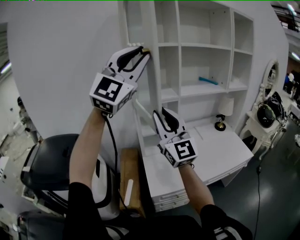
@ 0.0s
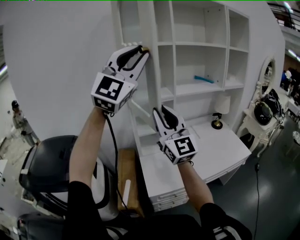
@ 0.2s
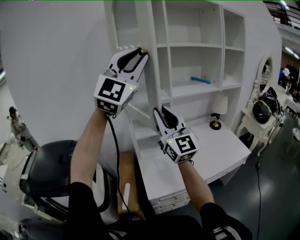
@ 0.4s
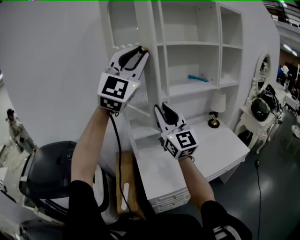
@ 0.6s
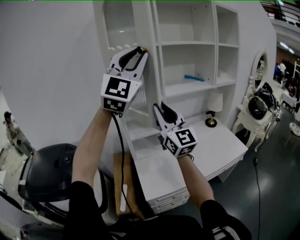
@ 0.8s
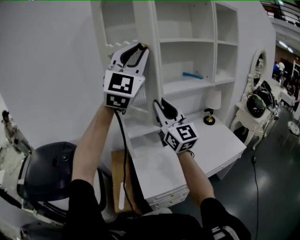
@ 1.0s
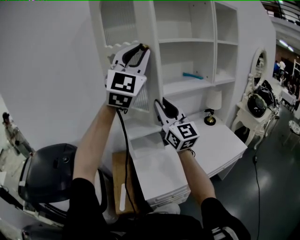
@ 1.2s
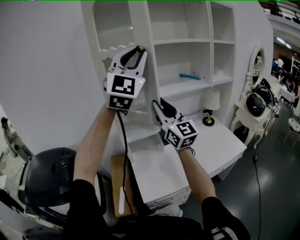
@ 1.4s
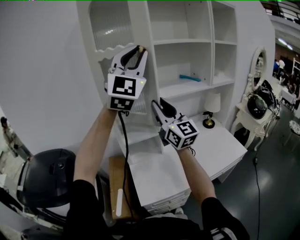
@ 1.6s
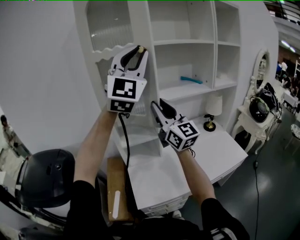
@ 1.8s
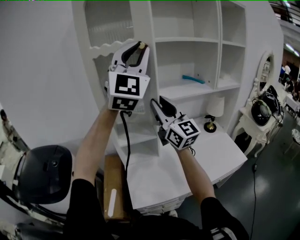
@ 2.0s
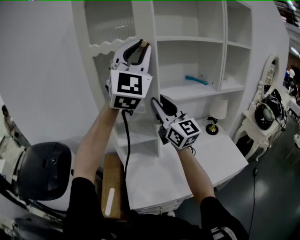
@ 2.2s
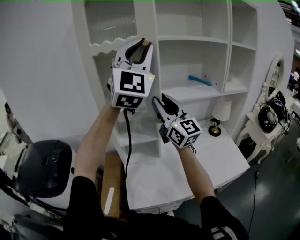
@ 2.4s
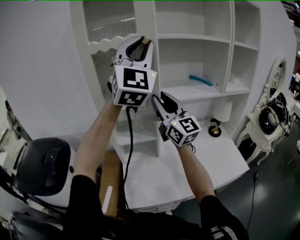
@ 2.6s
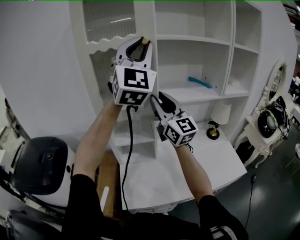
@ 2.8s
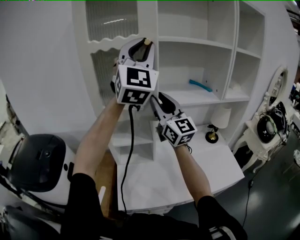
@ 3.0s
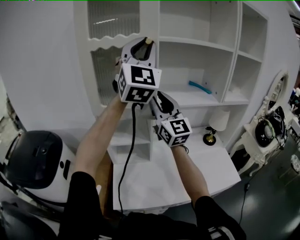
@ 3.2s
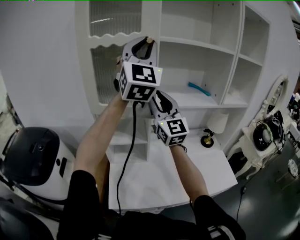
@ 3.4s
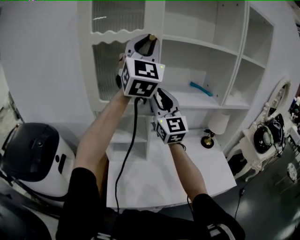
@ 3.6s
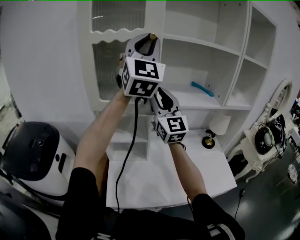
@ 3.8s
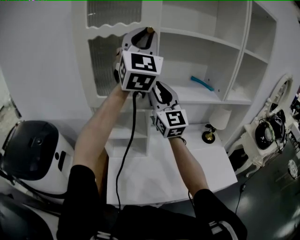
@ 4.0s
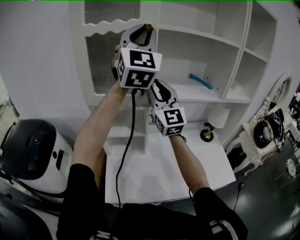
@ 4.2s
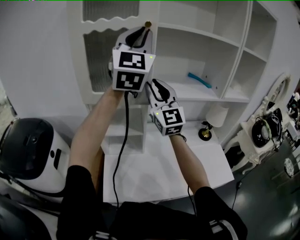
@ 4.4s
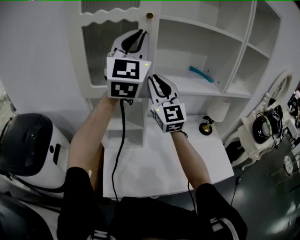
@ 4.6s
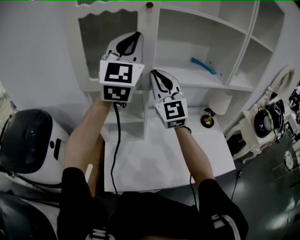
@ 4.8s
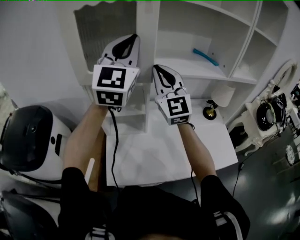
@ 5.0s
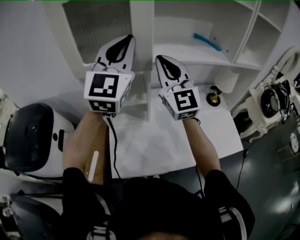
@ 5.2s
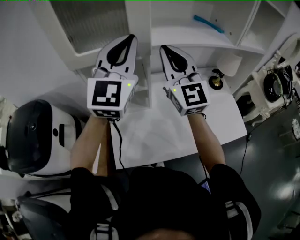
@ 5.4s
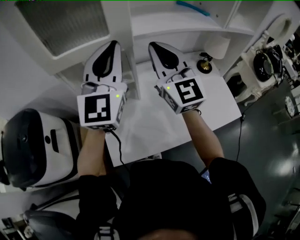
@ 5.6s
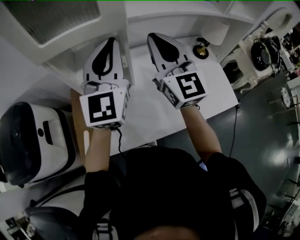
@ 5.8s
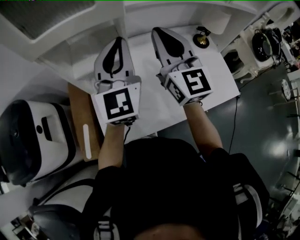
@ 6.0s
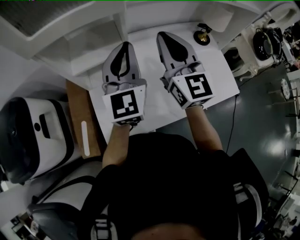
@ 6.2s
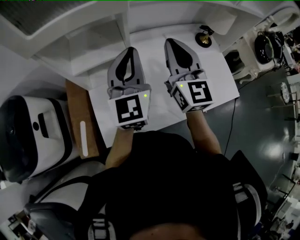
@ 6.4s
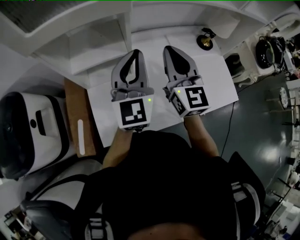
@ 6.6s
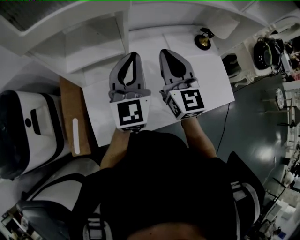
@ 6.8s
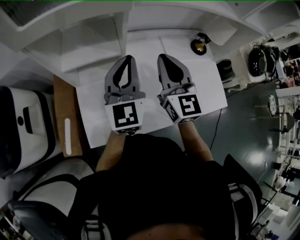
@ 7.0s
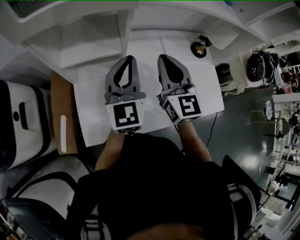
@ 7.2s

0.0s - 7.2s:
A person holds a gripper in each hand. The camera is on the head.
0.0s - 1.4s: The left gripper heads to the right and forward, covering approximately 15 cm, while the right gripper travels forward and to the right by roughly 15 cm.
1.4s - 2.8s: Both grippers move forward and to the right, roughly 15 cm.
2.8s - 4.4s: The grippers both shift forward by approximately 5 cm.
4.4s - 5.8s: The left gripper is displaced downward by roughly 25 cm, and rotates approximately 20 degrees. Meanwhile the right gripper goes roughly 10 cm downward and to the right, and closes its fingers.
5.8s - 7.2s: The grippers both shift downward by about 15 cm.

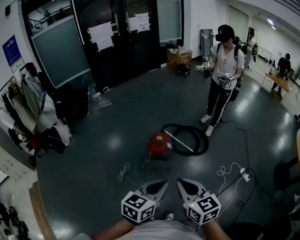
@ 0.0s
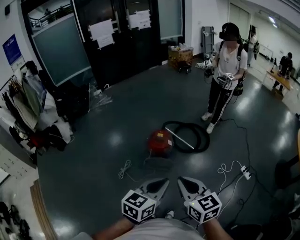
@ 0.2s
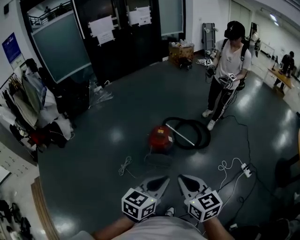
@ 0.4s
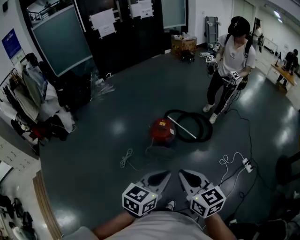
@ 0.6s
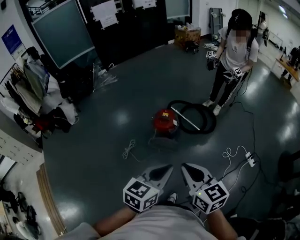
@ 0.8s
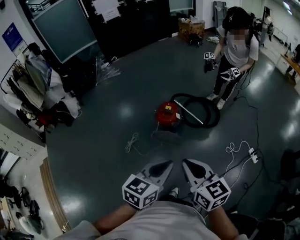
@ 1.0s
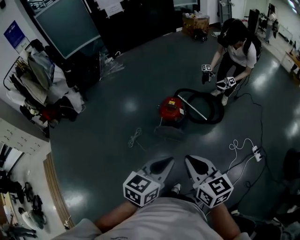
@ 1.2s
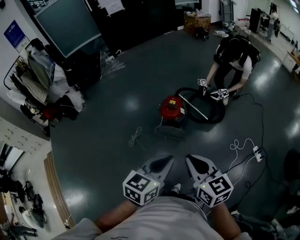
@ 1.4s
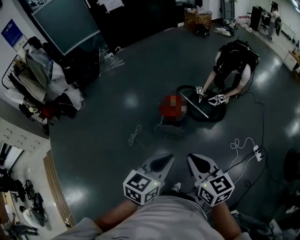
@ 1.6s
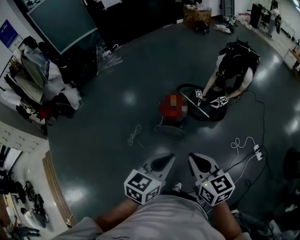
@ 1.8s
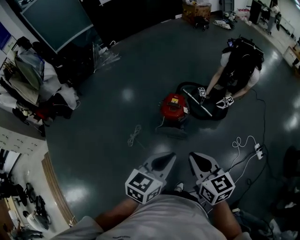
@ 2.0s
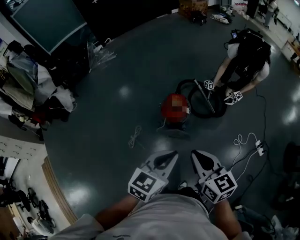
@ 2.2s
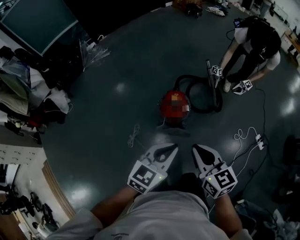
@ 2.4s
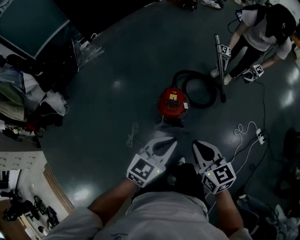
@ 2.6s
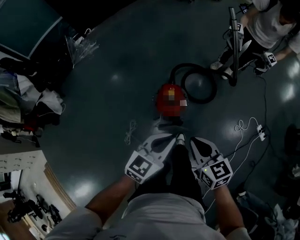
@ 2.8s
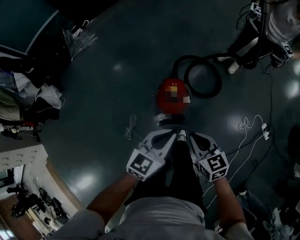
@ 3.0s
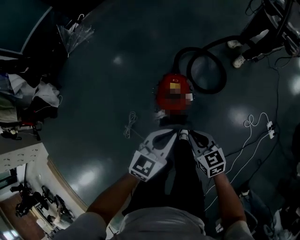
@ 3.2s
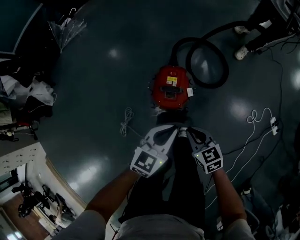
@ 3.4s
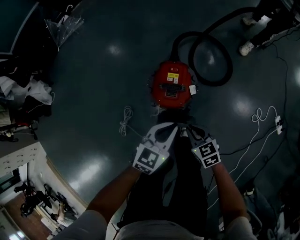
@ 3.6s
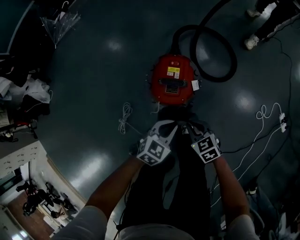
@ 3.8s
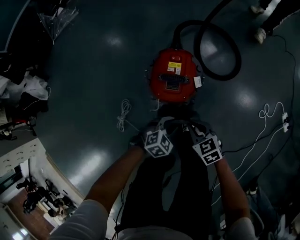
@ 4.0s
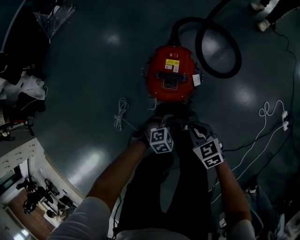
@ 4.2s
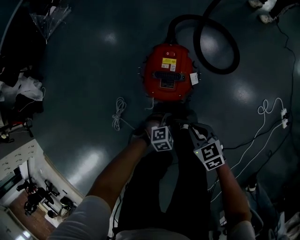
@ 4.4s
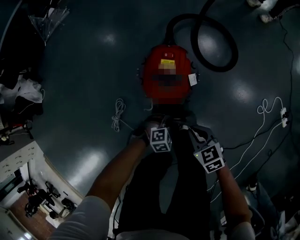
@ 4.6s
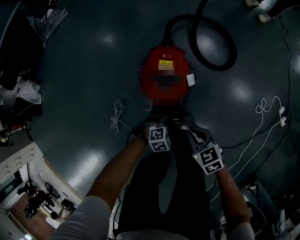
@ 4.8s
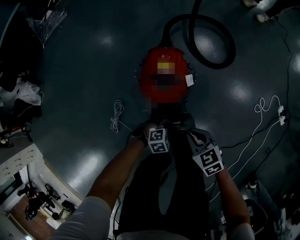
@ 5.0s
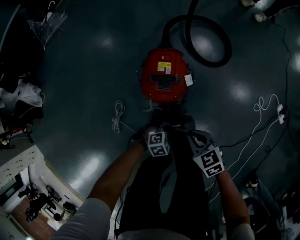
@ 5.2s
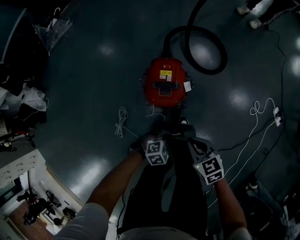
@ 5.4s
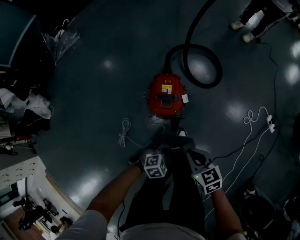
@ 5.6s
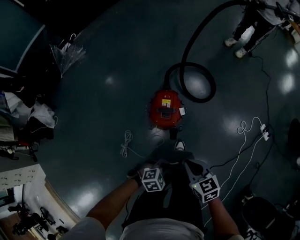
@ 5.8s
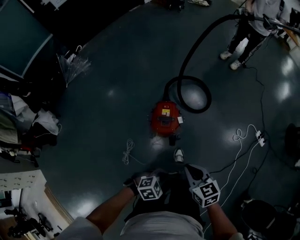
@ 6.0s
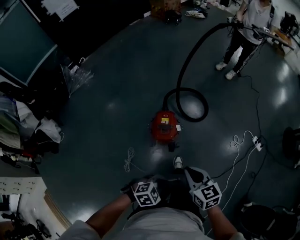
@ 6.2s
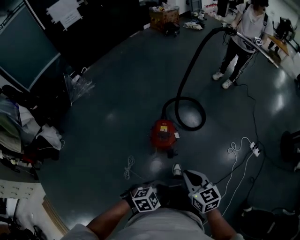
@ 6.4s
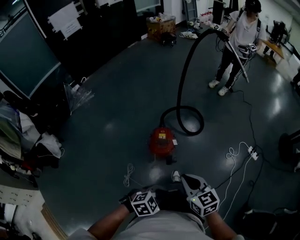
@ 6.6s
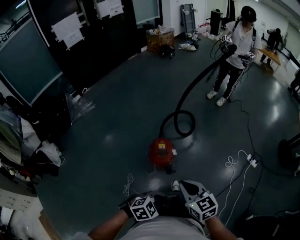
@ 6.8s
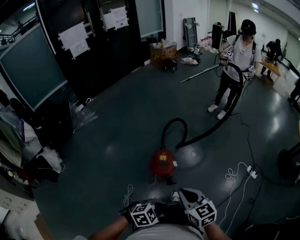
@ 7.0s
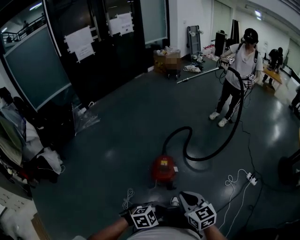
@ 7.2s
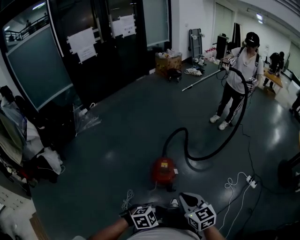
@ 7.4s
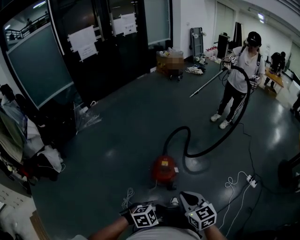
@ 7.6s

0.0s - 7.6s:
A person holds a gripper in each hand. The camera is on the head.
0.0s - 1.6s: The right gripper moves about 5 cm.
1.6s - 3.0s: The two grippers go some 40 cm forward and downward.
3.0s - 4.6s: The left gripper is displaced downward by roughly 50 cm, and tilts its fingers some 50 degrees downward. The right gripper travels downward by about 35 cm.
4.6s - 6.0s: Both grippers travel together upward, approximately 40 cm. The right gripper swivels roughly 20 degrees.
6.0s - 7.6s: The two grippers go approximately 20 cm upward.

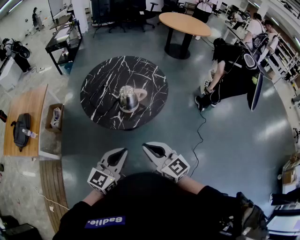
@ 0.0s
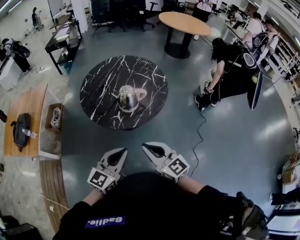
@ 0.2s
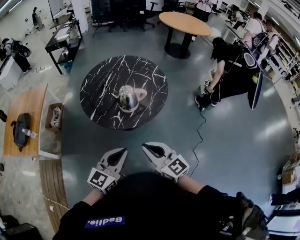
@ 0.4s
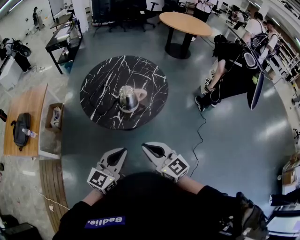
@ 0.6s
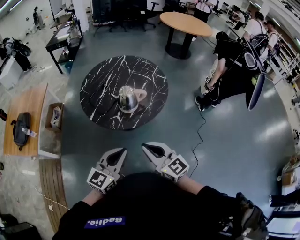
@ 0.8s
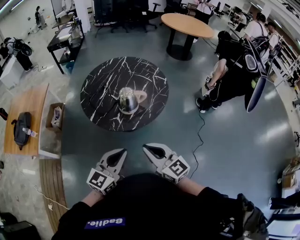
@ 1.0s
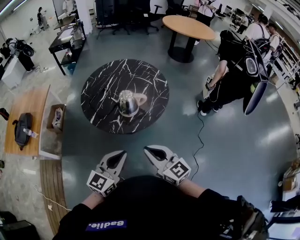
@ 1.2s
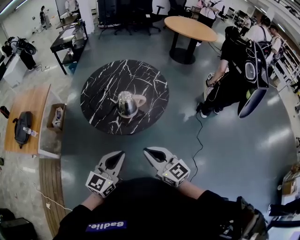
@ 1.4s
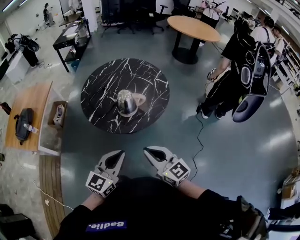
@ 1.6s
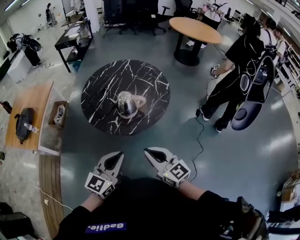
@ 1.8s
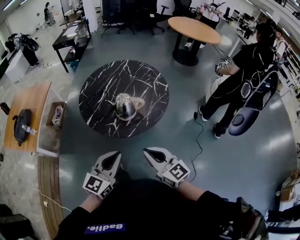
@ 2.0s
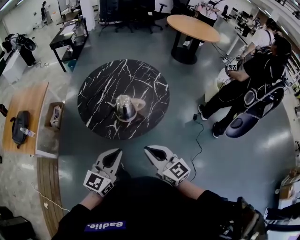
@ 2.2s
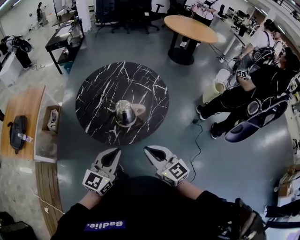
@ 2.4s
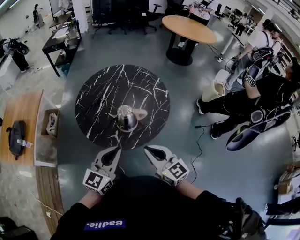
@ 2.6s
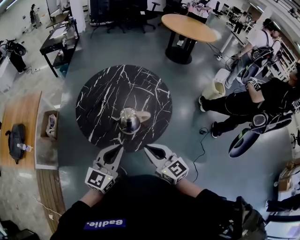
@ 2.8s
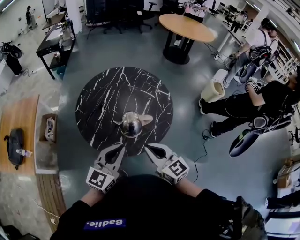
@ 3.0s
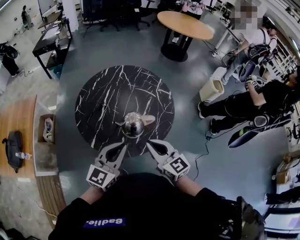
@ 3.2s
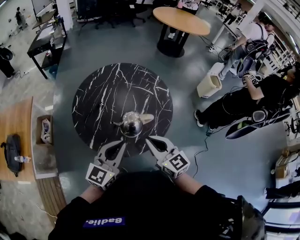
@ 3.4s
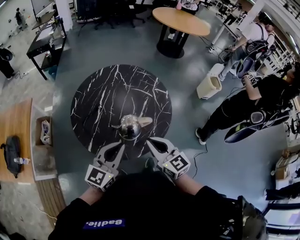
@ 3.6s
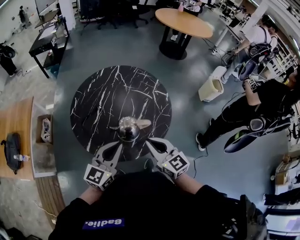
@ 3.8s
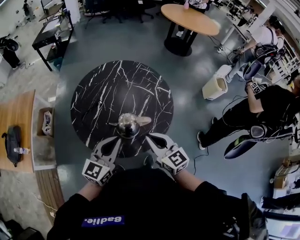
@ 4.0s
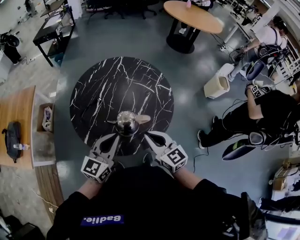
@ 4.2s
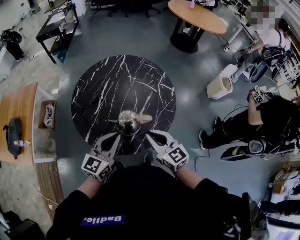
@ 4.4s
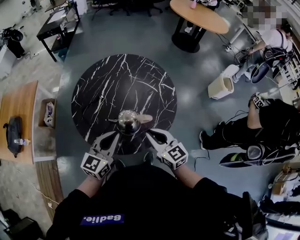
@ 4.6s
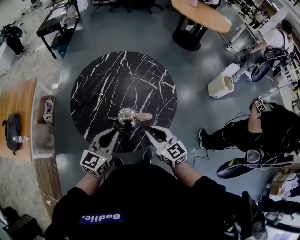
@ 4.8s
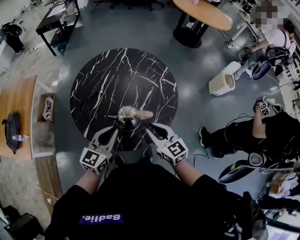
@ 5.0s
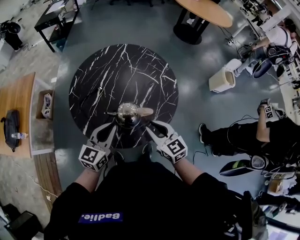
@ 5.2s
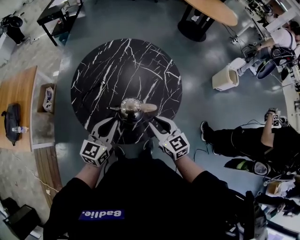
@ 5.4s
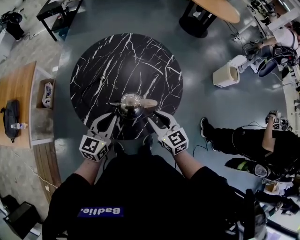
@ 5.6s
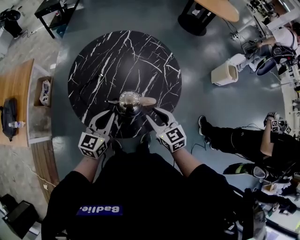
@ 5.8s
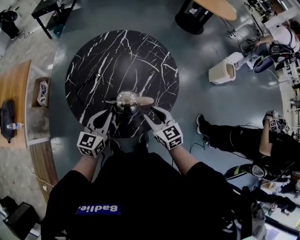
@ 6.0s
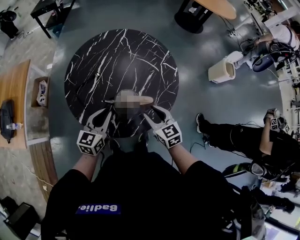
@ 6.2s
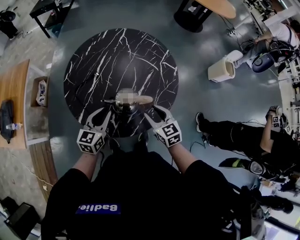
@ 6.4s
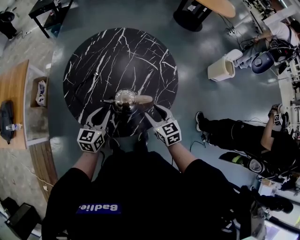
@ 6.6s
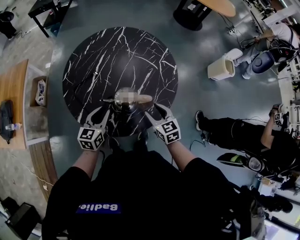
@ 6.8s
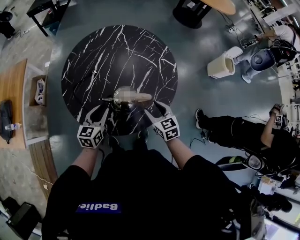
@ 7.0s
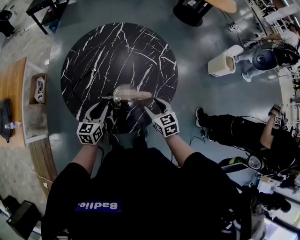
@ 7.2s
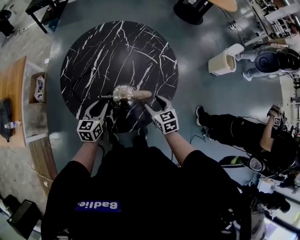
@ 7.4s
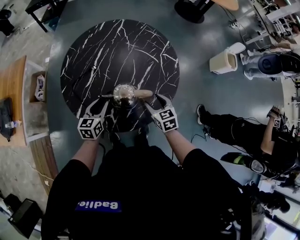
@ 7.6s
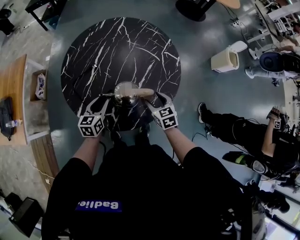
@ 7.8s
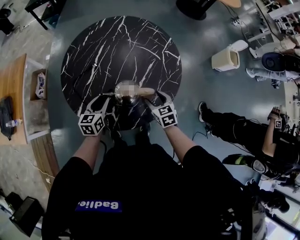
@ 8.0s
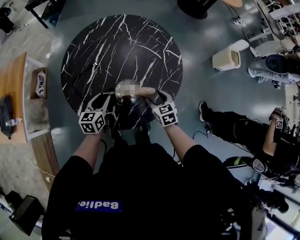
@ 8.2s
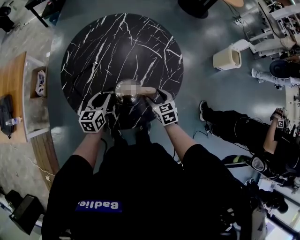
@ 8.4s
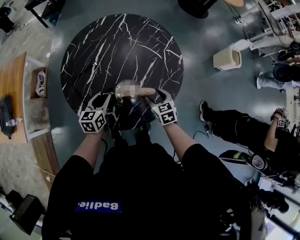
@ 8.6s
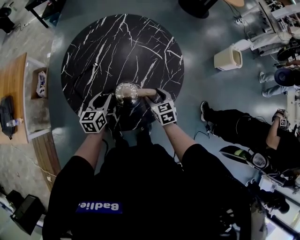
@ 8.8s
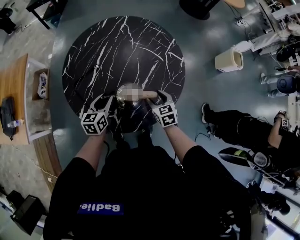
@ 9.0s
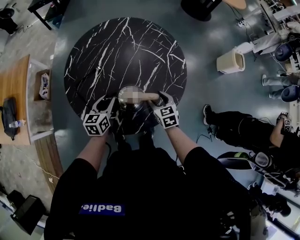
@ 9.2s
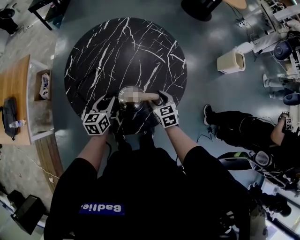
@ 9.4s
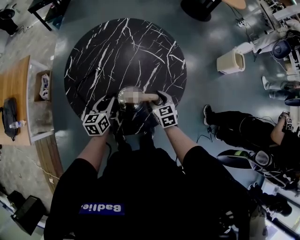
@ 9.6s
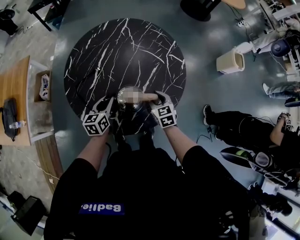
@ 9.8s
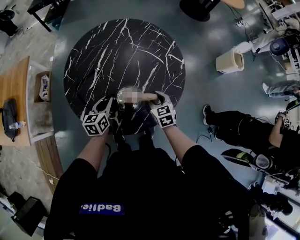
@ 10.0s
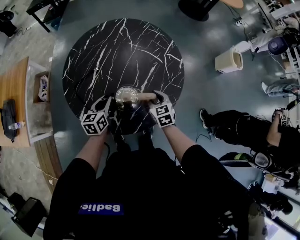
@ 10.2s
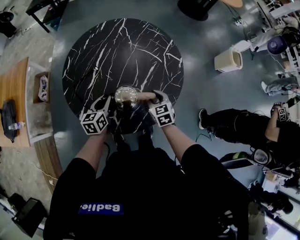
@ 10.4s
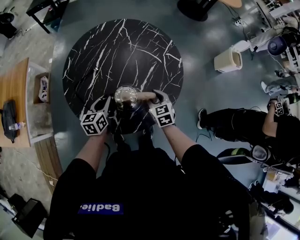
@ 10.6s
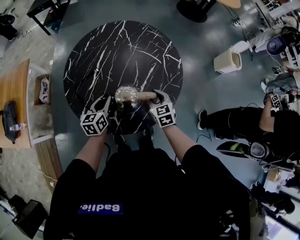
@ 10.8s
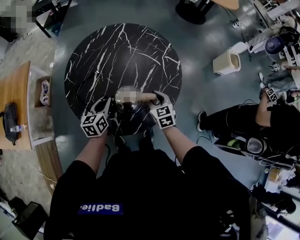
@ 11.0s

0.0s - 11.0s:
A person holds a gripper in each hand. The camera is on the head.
0.0s - 1.6s: The left gripper shifts by some 5 cm; the right gripper travels to the right by some 5 cm.
1.6s - 3.2s: The two grippers go some 25 cm forward.
3.2s - 4.8s: The right gripper goes approximately 15 cm forward, downward and to the right; the left gripper goes approximately 10 cm forward and downward.
4.8s - 6.2s: The two grippers go approximately 10 cm downward. The right gripper opens.
6.2s - 7.8s: The two grippers go roughly 10 cm downward. The left gripper opens. The right gripper opens its fingers.
7.8s - 9.4s: The grippers stay close to where they were, moving slightly.
9.4s - 11.0s: The right gripper closes its fingers.
